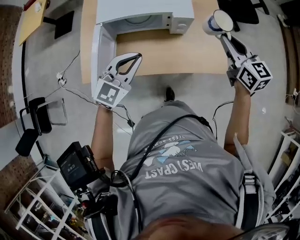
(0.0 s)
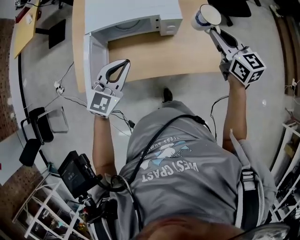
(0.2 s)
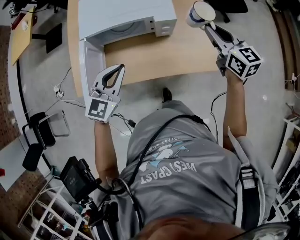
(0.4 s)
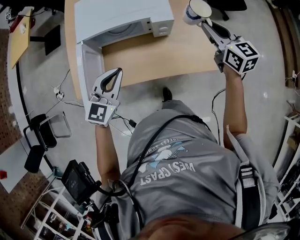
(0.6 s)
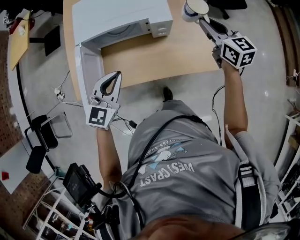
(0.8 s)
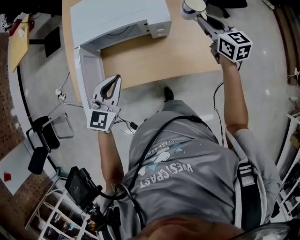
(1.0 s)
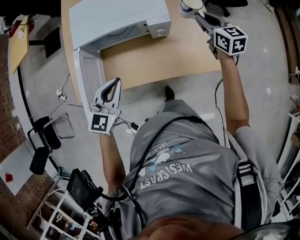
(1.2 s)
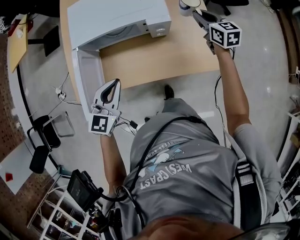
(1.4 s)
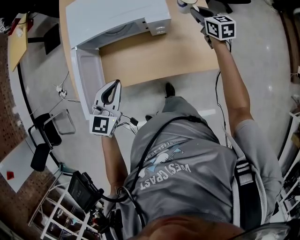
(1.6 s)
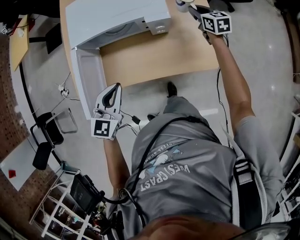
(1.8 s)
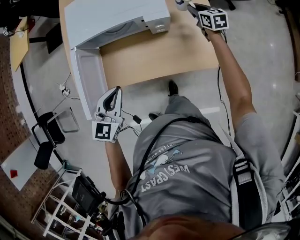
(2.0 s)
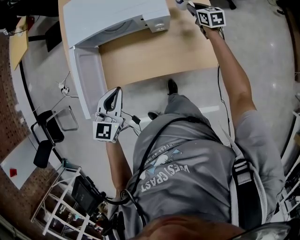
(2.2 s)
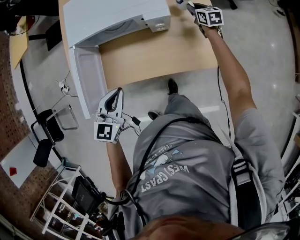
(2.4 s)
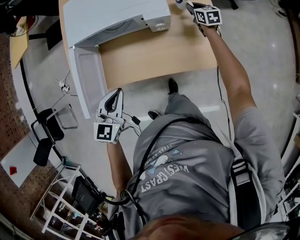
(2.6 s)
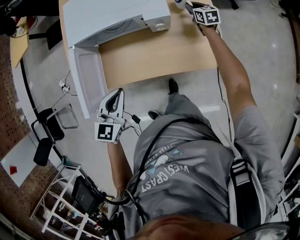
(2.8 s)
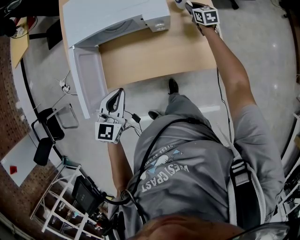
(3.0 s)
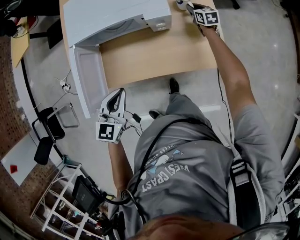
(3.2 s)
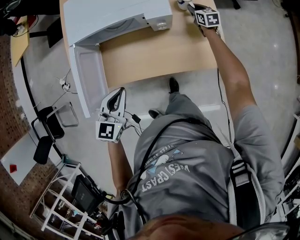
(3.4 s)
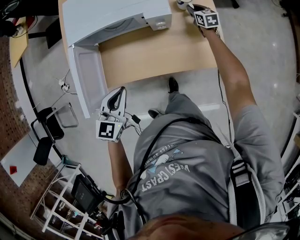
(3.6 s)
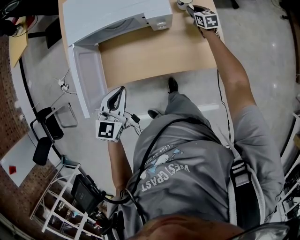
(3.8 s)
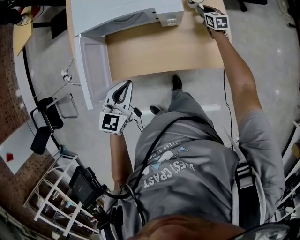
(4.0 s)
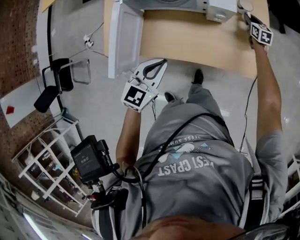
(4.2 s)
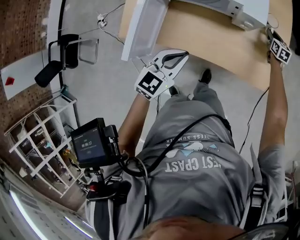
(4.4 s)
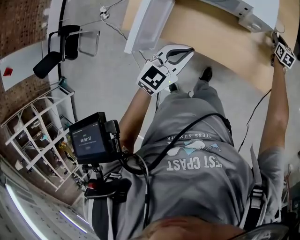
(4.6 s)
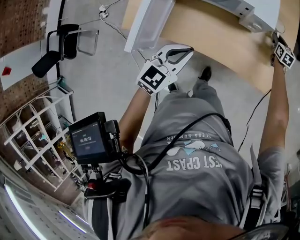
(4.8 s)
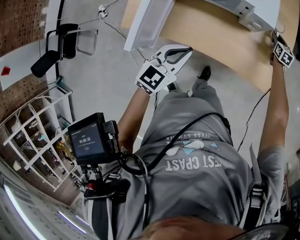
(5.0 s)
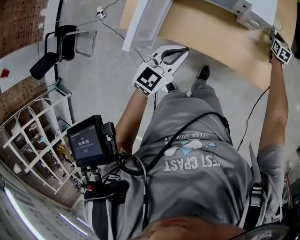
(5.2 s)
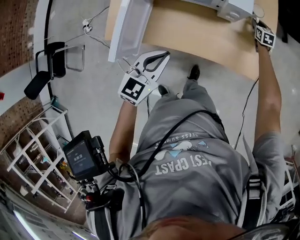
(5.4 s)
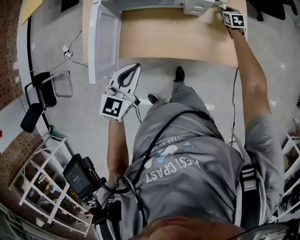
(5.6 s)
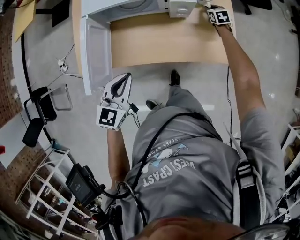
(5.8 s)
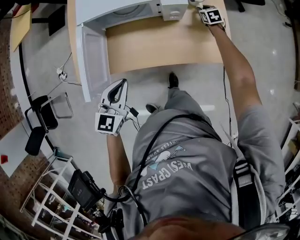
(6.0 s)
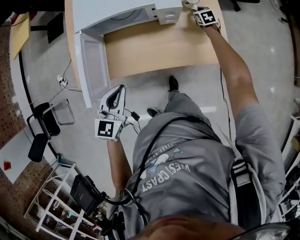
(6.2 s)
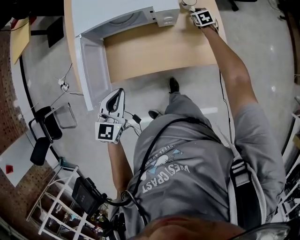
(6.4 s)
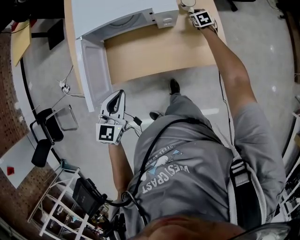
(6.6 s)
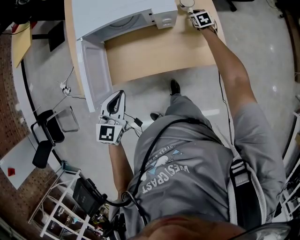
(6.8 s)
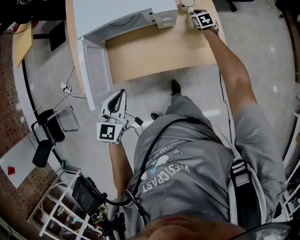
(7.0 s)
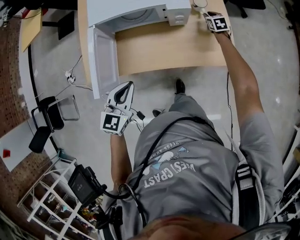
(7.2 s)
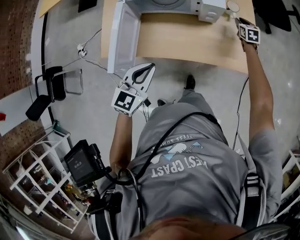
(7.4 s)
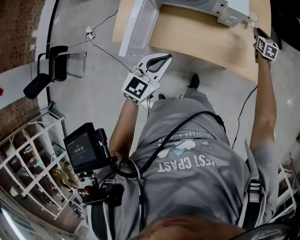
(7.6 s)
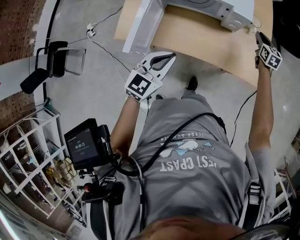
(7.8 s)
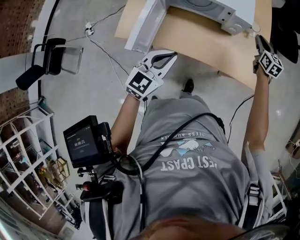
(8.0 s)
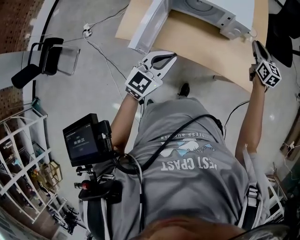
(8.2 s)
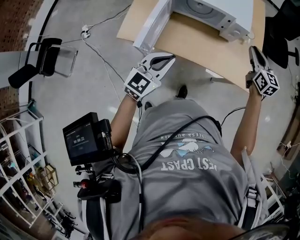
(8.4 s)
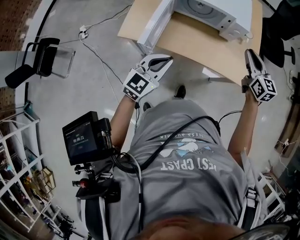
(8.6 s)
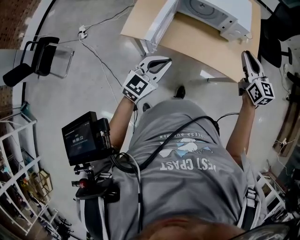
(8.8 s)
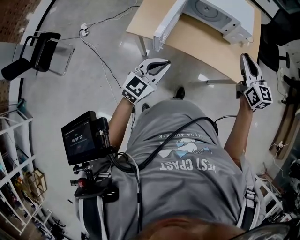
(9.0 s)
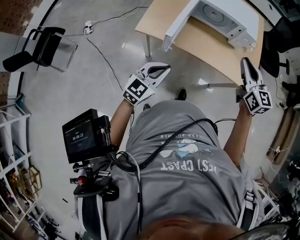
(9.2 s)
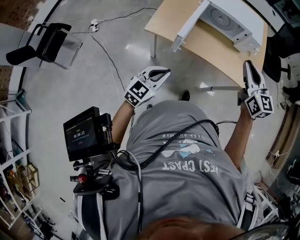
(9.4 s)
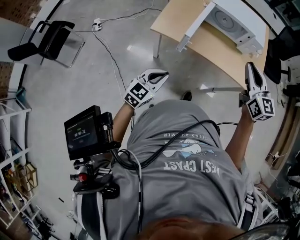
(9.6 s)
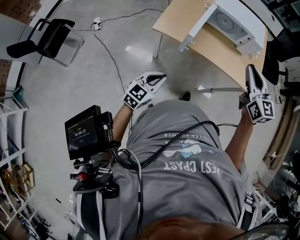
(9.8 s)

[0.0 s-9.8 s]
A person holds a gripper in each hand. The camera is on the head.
0.0 to 1.4 s: The right gripper moves forward and downward, roughly 20 cm.
1.4 to 2.8 s: The right gripper travels downward and forward by roughly 20 cm.
2.8 to 4.2 s: The grippers make only small movements.
4.2 to 5.6 s: The right gripper moves to the left, some 5 cm; the left gripper shifts by some 5 cm.
5.6 to 7.0 s: The grippers move only a little.
7.0 to 8.4 s: The right gripper moves upward and backward, some 35 cm, and points its fingers some 30 degrees further upward. Meanwhile the left gripper is displaced backward by about 5 cm.
8.4 to 9.8 s: The right gripper heads backward, to the left and upward, covering about 40 cm; the left gripper shifts about 35 cm backward and to the left.

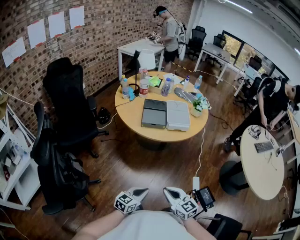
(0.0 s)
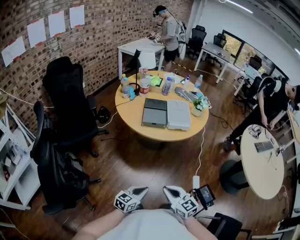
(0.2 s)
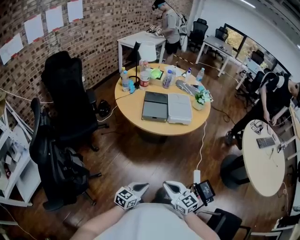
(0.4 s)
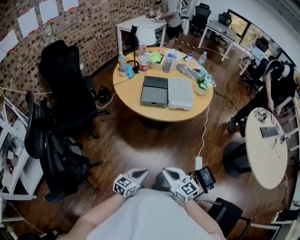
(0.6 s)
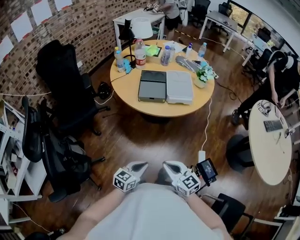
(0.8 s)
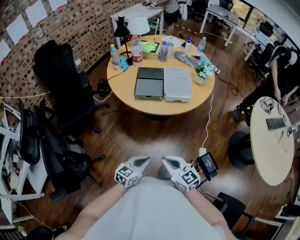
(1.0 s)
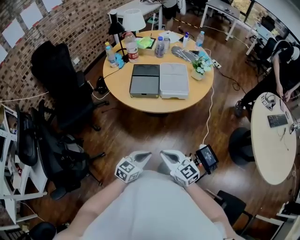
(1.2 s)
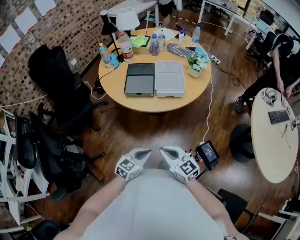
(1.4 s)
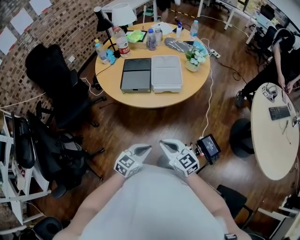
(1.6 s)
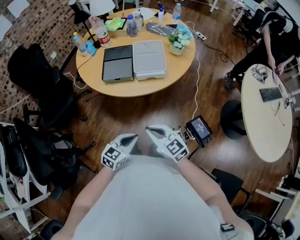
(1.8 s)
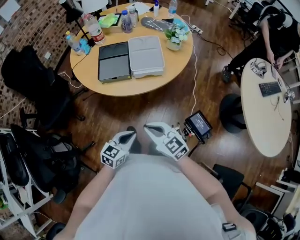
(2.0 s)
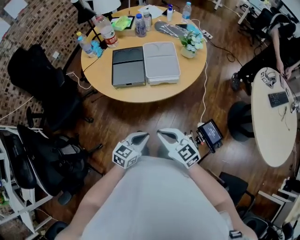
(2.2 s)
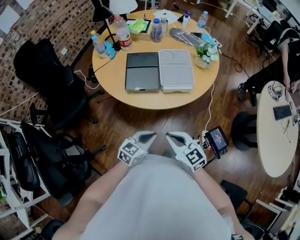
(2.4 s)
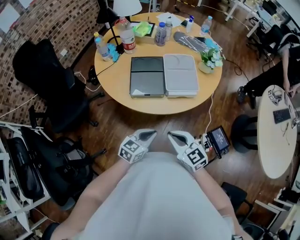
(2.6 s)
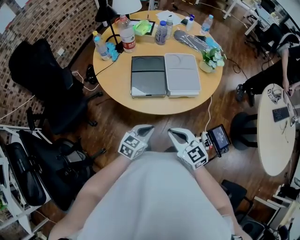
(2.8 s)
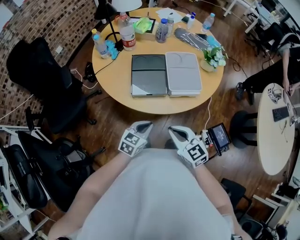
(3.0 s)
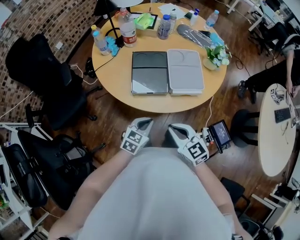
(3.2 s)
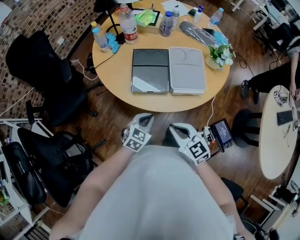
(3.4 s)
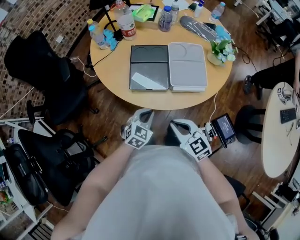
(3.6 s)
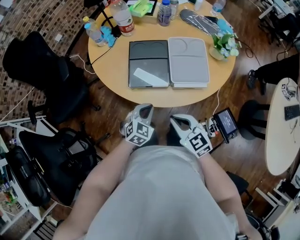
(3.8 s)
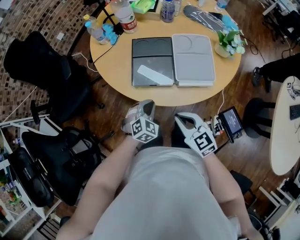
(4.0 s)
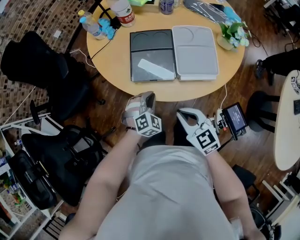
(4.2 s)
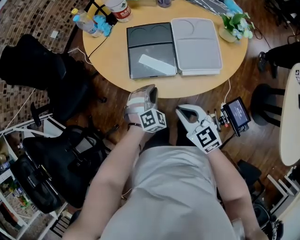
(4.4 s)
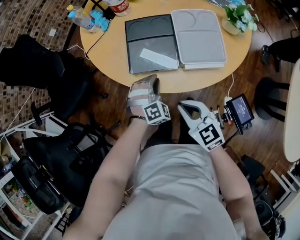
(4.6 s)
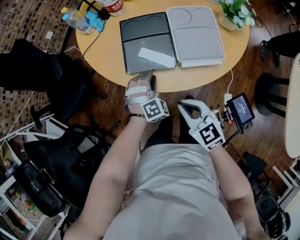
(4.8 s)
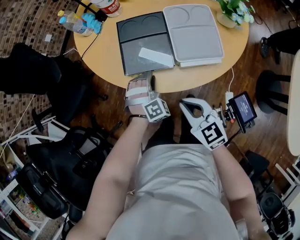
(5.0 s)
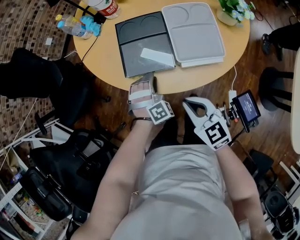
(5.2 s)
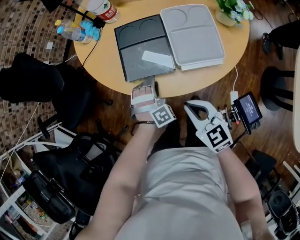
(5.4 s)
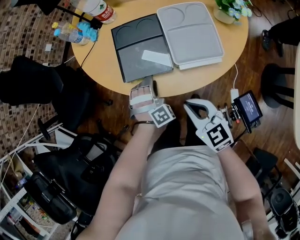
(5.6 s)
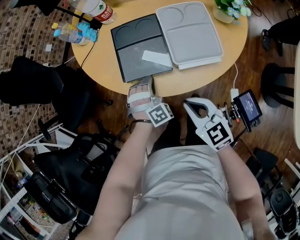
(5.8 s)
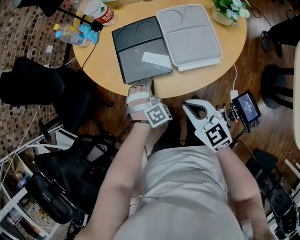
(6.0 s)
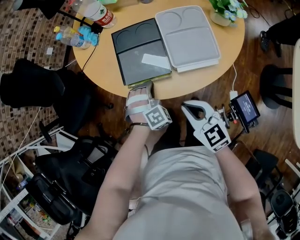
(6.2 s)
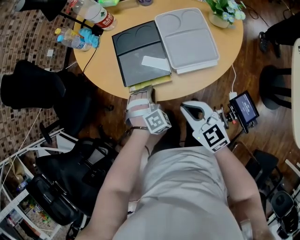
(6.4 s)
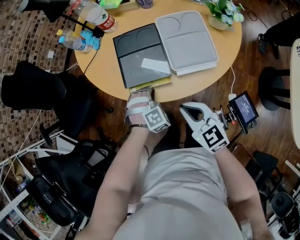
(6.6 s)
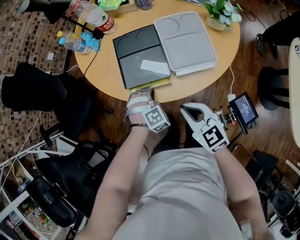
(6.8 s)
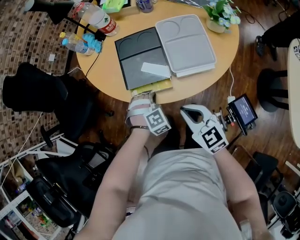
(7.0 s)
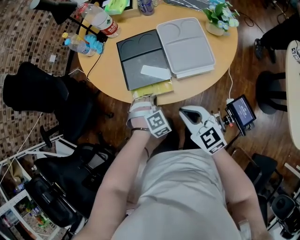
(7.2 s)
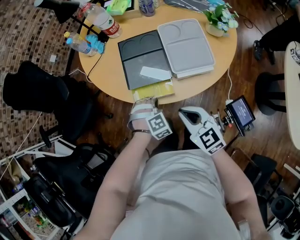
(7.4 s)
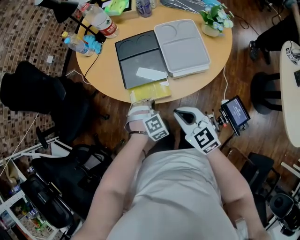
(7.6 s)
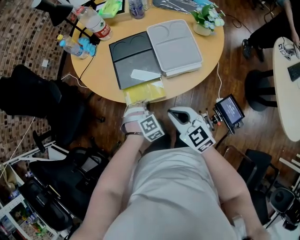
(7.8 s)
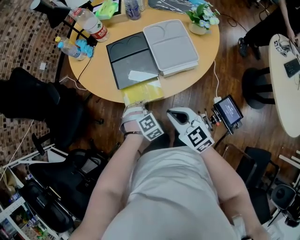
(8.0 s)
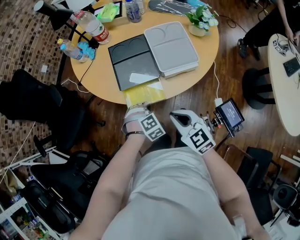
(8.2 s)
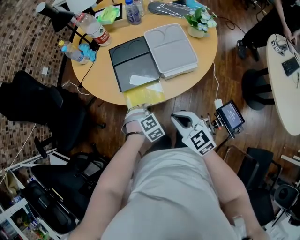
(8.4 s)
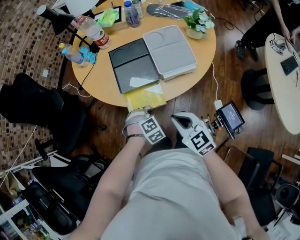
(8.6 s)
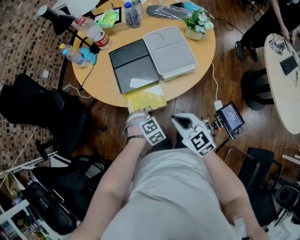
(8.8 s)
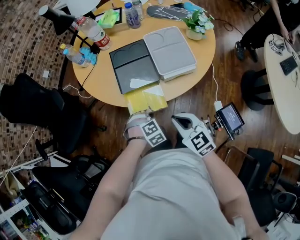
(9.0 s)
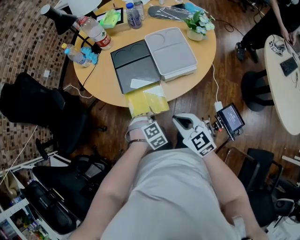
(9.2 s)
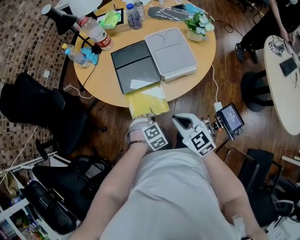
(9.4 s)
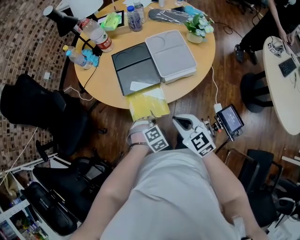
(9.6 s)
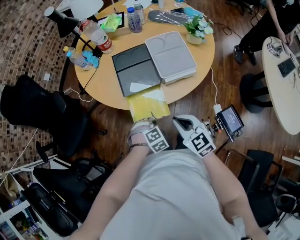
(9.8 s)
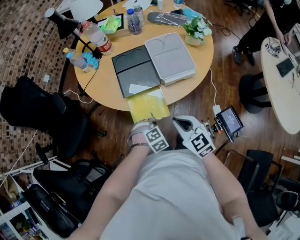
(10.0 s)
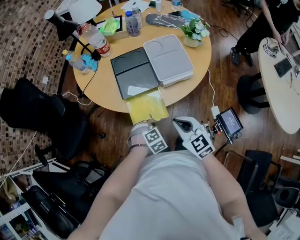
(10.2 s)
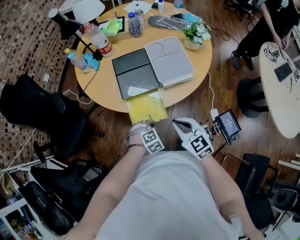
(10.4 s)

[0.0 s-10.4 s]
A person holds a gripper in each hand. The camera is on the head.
0.0 to 1.4 s: Both grippers move forward and to the right, approximately 15 cm.
1.4 to 3.0 s: The grippers both shift forward and to the left by some 20 cm.
3.0 to 4.4 s: The right gripper heads downward and forward, covering roughly 10 cm. Meanwhile the left gripper goes about 15 cm forward and downward, and rolls clockwise, seen from behind, by approximately 50 degrees.
4.4 to 6.0 s: The left gripper opens, then closes once more.
6.0 to 7.4 s: The left gripper shifts by roughly 5 cm.
7.4 to 9.0 s: The left gripper moves backward, about 5 cm.
9.0 to 10.4 s: The grippers move only a little.

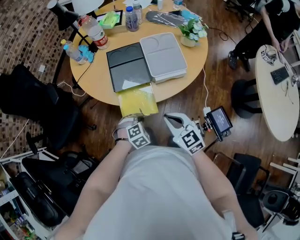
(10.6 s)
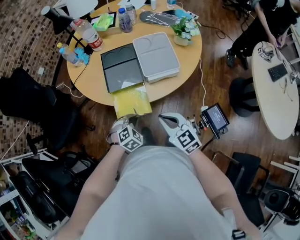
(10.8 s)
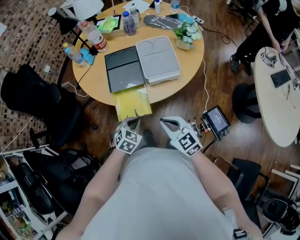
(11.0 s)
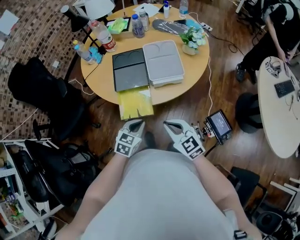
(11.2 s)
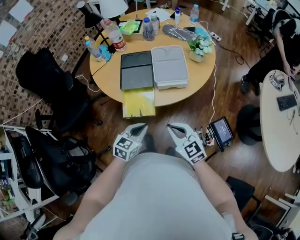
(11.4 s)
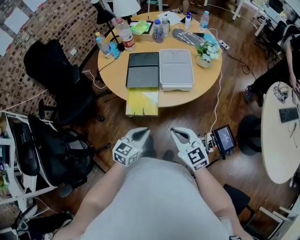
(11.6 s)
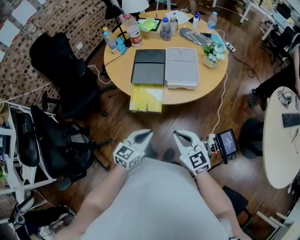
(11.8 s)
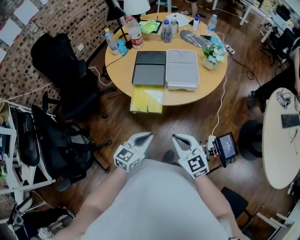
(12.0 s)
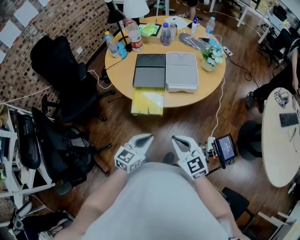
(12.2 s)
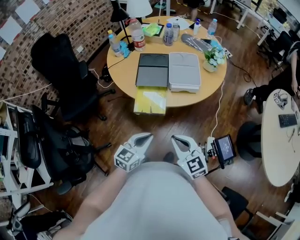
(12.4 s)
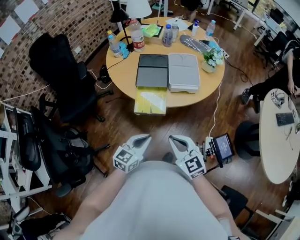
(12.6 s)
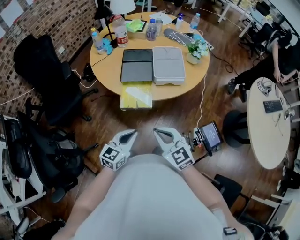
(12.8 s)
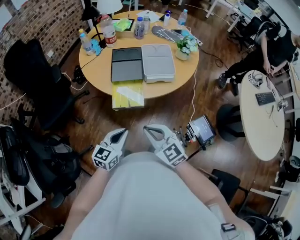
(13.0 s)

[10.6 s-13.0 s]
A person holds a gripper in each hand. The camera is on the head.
10.6 to 11.8 s: The left gripper travels upward and backward by about 25 cm, and tips its fingers upward by approximately 40 degrees, while the right gripper is displaced backward, to the right and upward by about 15 cm.
11.8 to 13.0 s: The grippers both shift to the left by approximately 10 cm.

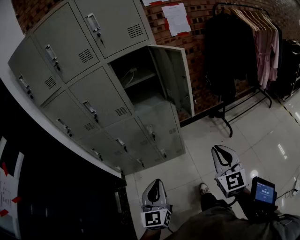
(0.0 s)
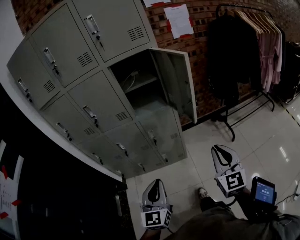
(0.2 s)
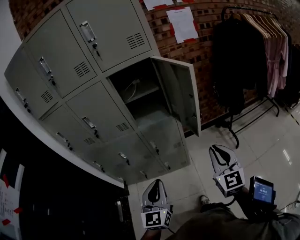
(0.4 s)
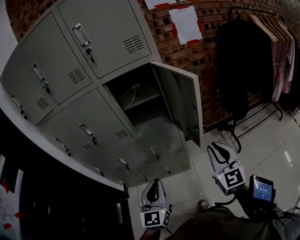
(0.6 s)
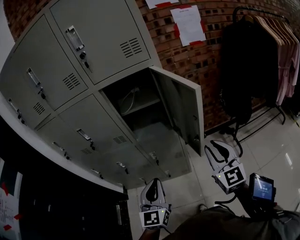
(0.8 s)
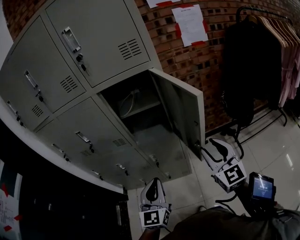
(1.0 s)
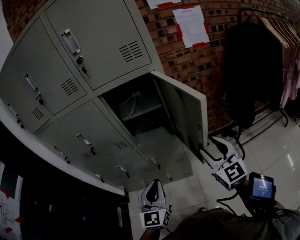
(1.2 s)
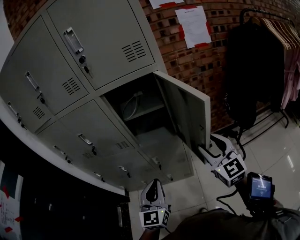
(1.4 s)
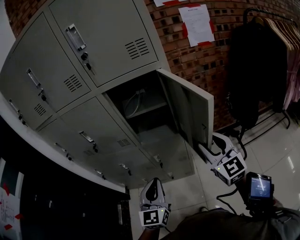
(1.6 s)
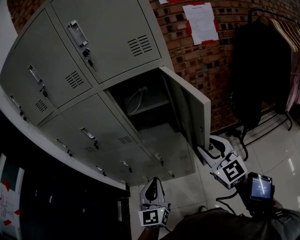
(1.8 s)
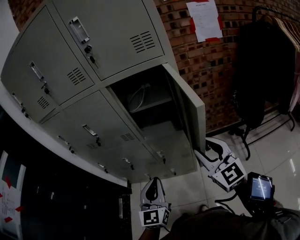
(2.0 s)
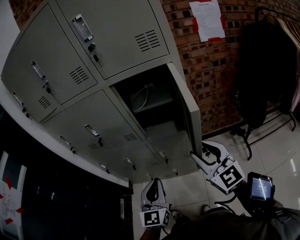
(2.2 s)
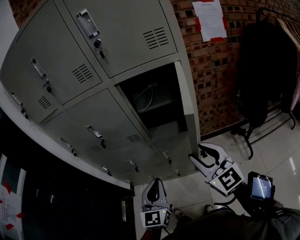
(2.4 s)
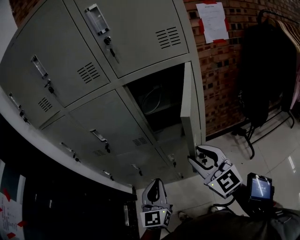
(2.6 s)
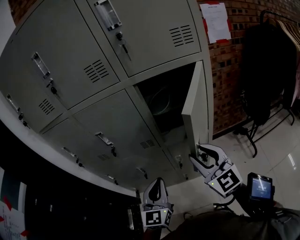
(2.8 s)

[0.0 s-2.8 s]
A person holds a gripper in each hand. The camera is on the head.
0.0 to 1.4 s: The grippers both shift forward by approximately 30 cm. The right gripper opens.
1.4 to 2.8 s: The right gripper goes roughly 20 cm to the left, while the left gripper heads to the left and forward, covering about 15 cm.
